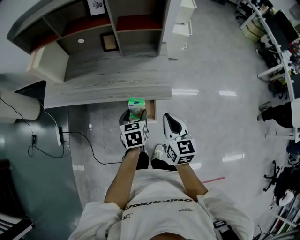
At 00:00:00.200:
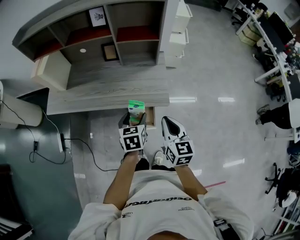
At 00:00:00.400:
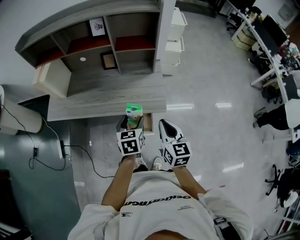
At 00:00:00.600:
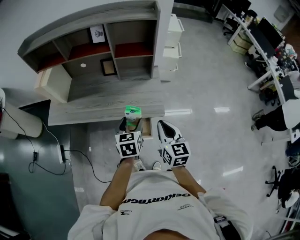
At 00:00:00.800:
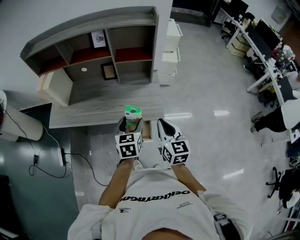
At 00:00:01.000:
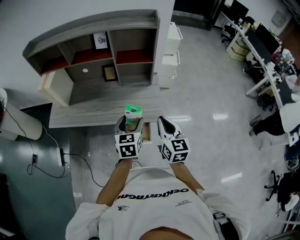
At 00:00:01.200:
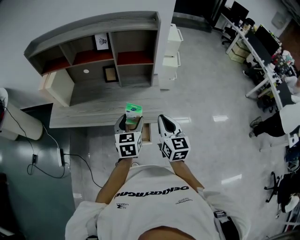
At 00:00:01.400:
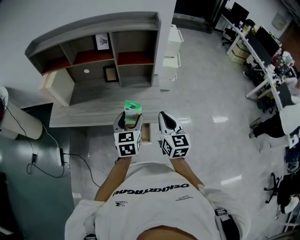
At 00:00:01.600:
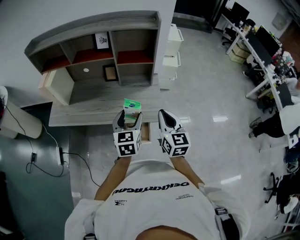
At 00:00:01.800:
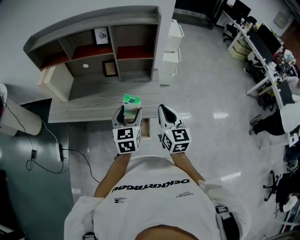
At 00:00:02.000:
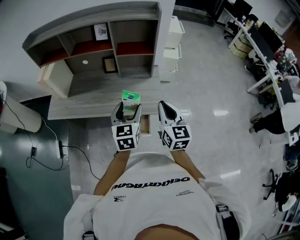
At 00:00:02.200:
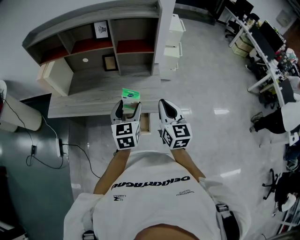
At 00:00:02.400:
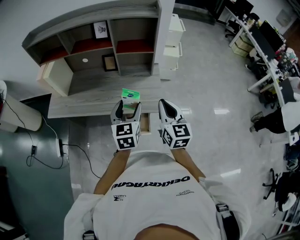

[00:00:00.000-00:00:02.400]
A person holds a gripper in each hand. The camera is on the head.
00:00:00.000 to 00:00:01.200: Both grippers move upward, roughly 15 cm. The left gripper changes its angle by some 20 degrees.
00:00:01.200 to 00:00:02.400: The grippers move only a little.

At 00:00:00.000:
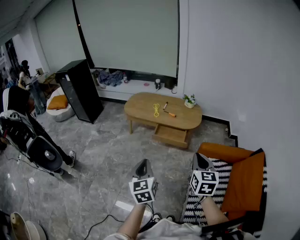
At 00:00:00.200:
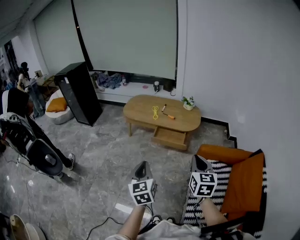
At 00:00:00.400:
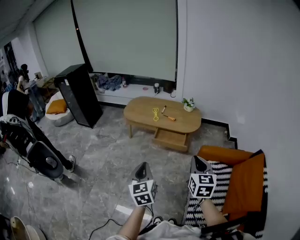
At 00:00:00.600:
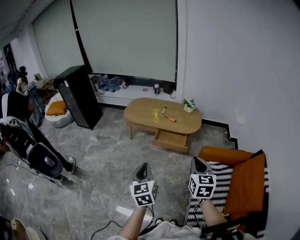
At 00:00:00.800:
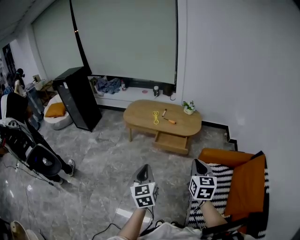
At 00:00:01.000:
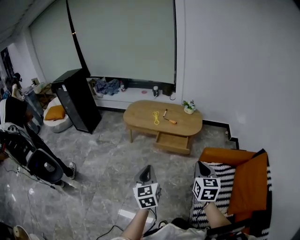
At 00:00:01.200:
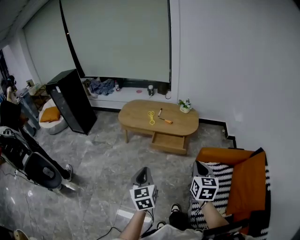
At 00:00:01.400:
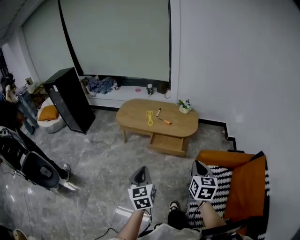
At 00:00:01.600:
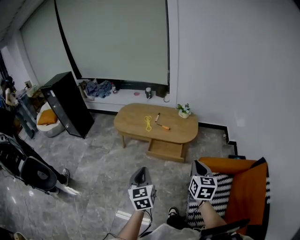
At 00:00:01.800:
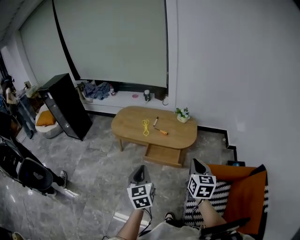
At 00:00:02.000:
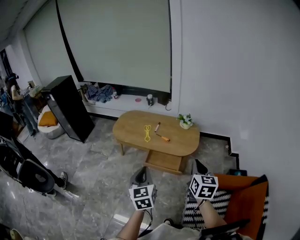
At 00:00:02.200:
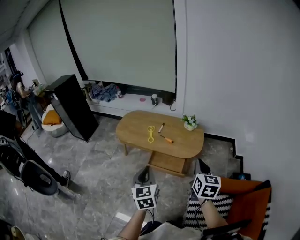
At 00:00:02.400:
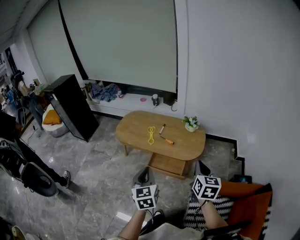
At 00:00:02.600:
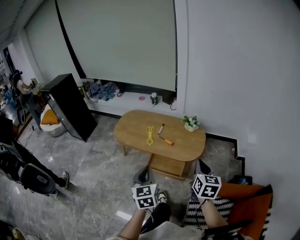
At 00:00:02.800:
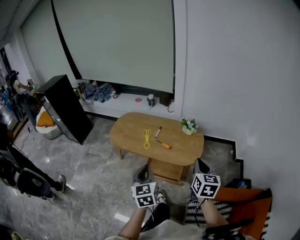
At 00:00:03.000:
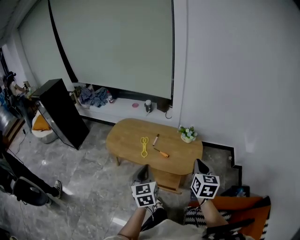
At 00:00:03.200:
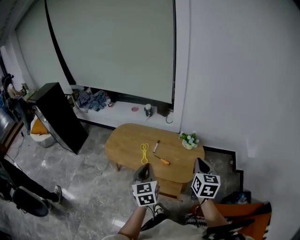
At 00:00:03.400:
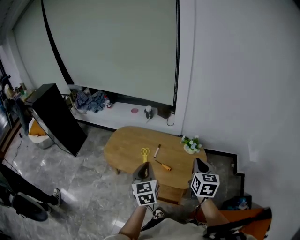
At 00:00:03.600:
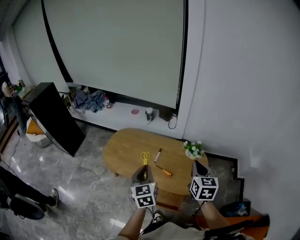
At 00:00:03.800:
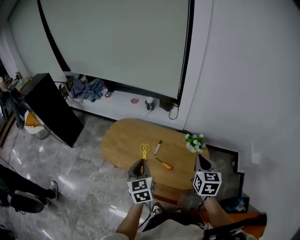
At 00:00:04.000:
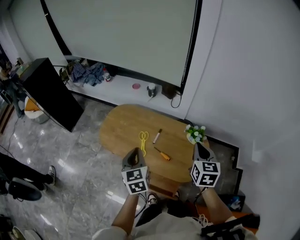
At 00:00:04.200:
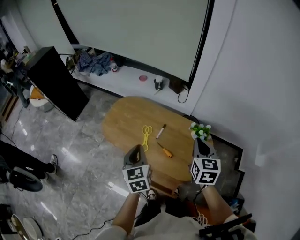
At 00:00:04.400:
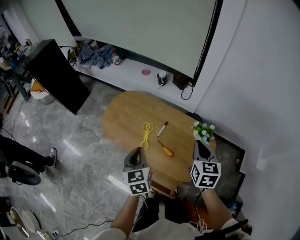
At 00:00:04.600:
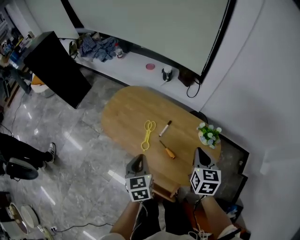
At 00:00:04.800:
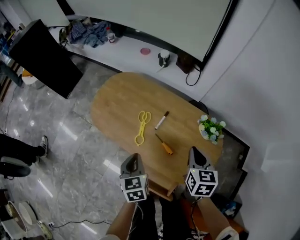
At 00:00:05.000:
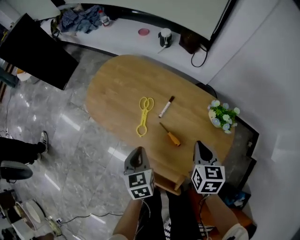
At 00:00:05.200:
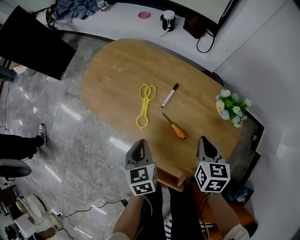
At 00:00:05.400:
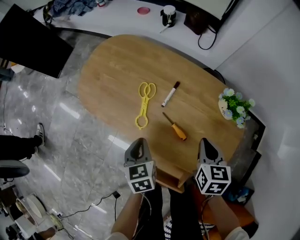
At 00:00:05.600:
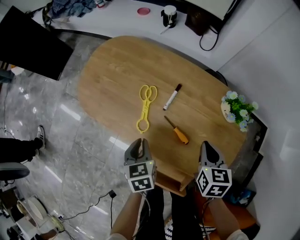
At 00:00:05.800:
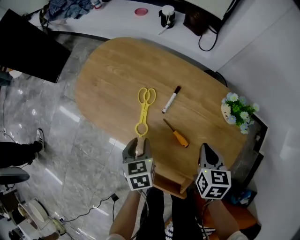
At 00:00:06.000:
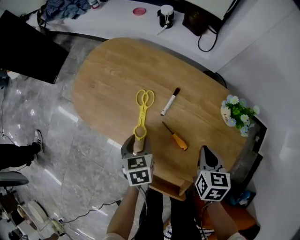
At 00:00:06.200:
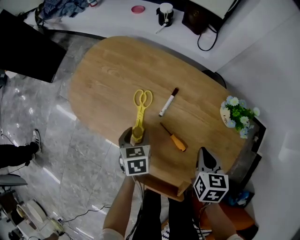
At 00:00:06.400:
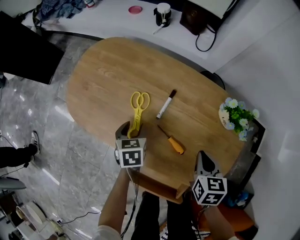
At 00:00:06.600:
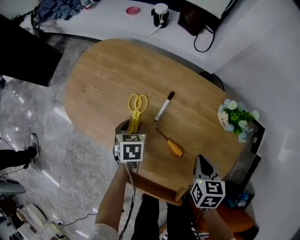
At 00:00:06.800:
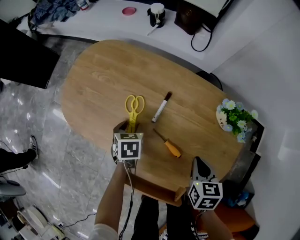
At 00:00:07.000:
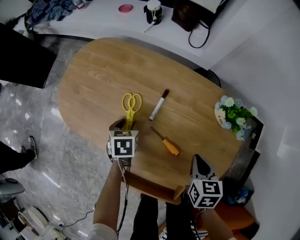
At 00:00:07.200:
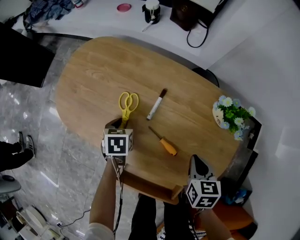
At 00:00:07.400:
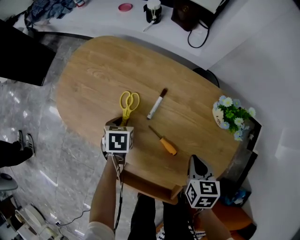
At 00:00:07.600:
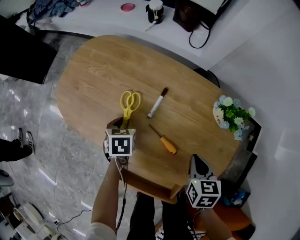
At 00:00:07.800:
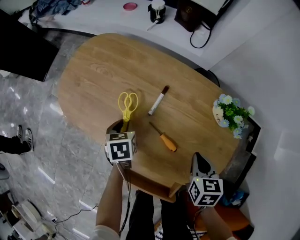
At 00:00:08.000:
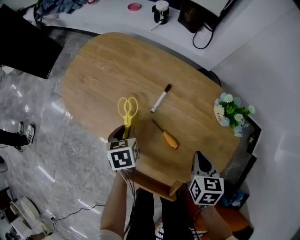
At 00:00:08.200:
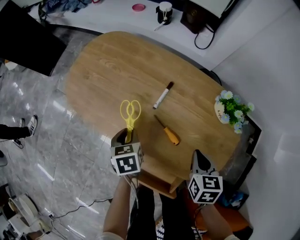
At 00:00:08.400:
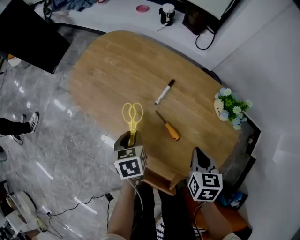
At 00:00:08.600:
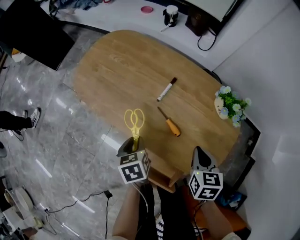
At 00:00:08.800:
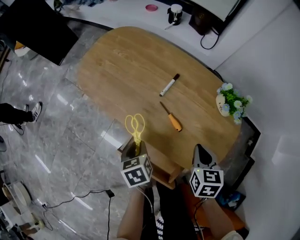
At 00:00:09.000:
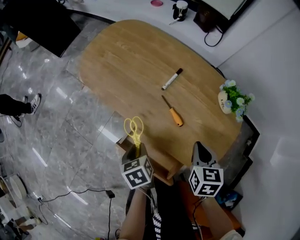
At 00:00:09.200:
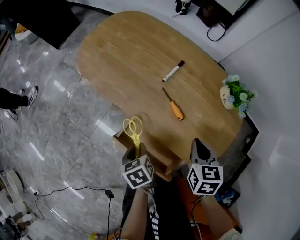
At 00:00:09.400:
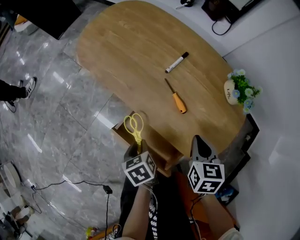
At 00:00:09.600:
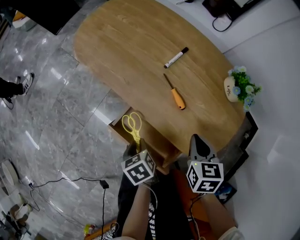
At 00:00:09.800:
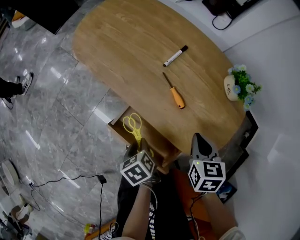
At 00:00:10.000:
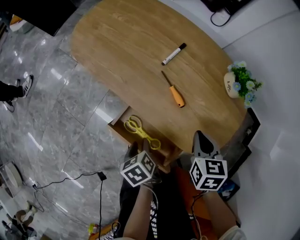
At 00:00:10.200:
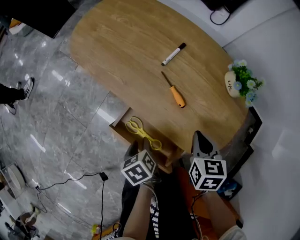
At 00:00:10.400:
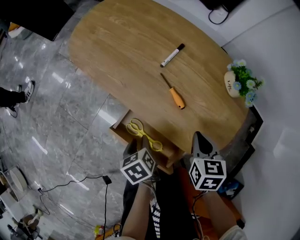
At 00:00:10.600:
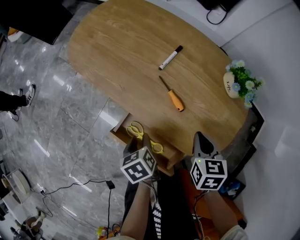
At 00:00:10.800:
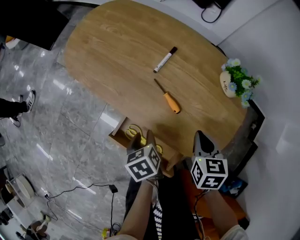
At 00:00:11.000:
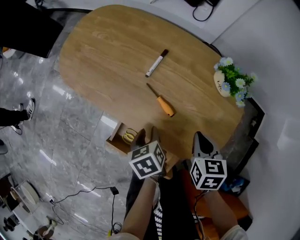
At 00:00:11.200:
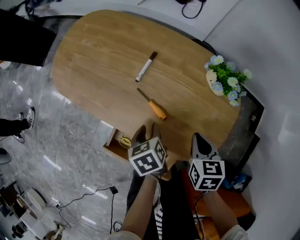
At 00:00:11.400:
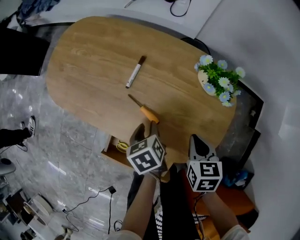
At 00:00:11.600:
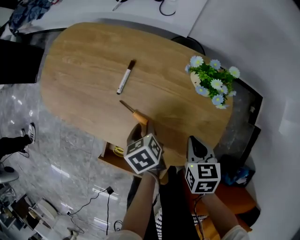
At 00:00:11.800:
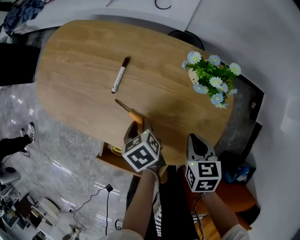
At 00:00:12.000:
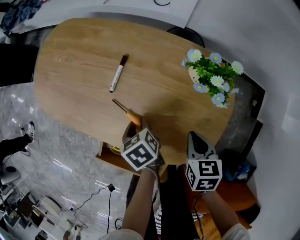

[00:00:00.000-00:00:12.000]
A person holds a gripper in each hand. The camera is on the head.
00:00:00.000 to 00:00:01.600: Both grippers travel together forward, some 15 cm.
00:00:01.600 to 00:00:03.000: Both grippers move forward, about 35 cm.
00:00:03.000 to 00:00:04.400: The grippers both shift forward by approximately 30 cm.
00:00:04.400 to 00:00:06.000: The grippers both shift downward by approximately 35 cm. The right gripper rotates roughly 20 degrees; the left gripper turns by some 20 degrees, and opens its fingers.
00:00:06.000 to 00:00:07.600: The left gripper heads forward and downward, covering some 10 cm.
00:00:07.600 to 00:00:09.000: The left gripper moves backward, about 25 cm, and swivels about 40 degrees. Meanwhile the right gripper is displaced backward and upward by roughly 10 cm.
00:00:09.000 to 00:00:10.400: The left gripper moves downward, roughly 5 cm, while the right gripper changes place by some 5 cm.
00:00:10.400 to 00:00:12.000: The left gripper heads forward and to the right, covering roughly 20 cm; the right gripper is displaced to the right by approximately 10 cm.

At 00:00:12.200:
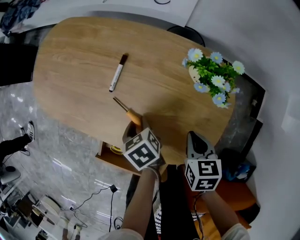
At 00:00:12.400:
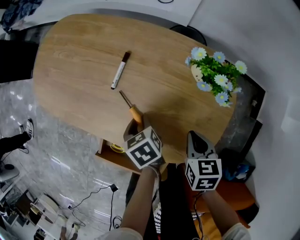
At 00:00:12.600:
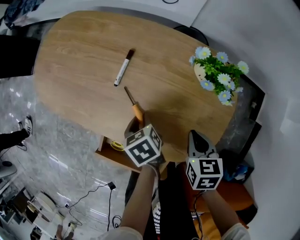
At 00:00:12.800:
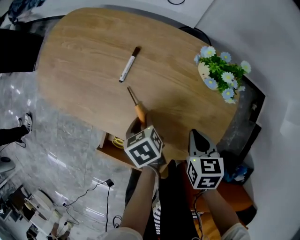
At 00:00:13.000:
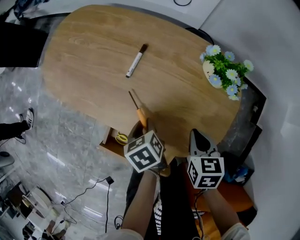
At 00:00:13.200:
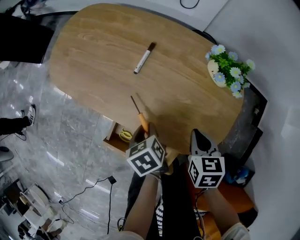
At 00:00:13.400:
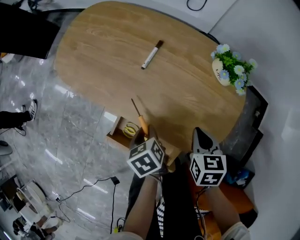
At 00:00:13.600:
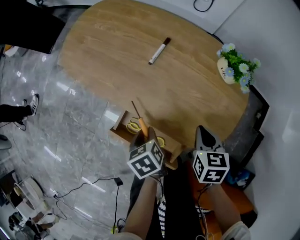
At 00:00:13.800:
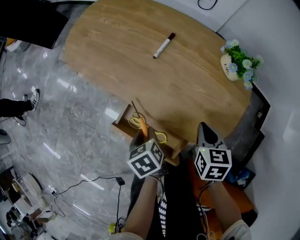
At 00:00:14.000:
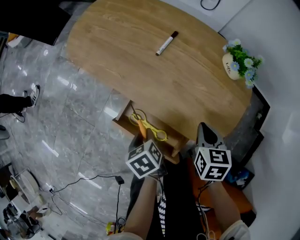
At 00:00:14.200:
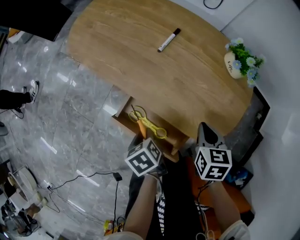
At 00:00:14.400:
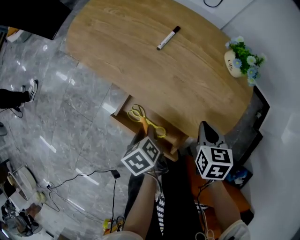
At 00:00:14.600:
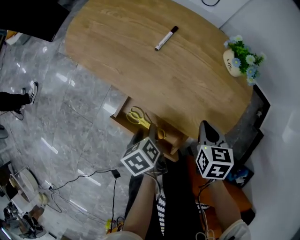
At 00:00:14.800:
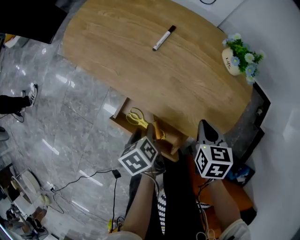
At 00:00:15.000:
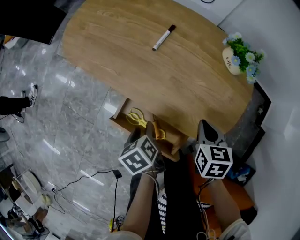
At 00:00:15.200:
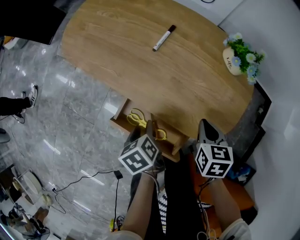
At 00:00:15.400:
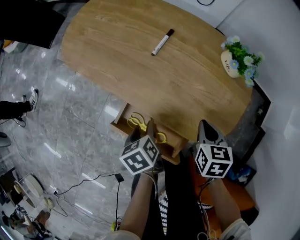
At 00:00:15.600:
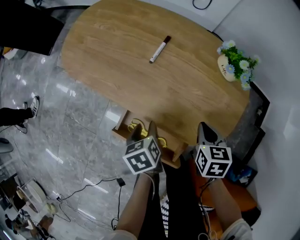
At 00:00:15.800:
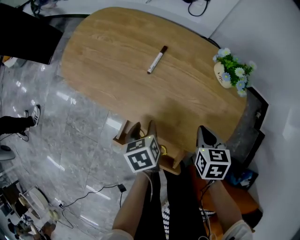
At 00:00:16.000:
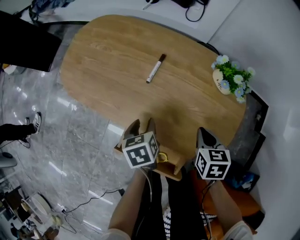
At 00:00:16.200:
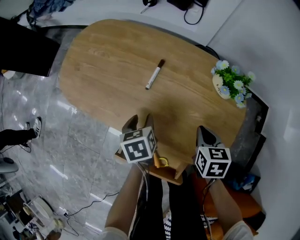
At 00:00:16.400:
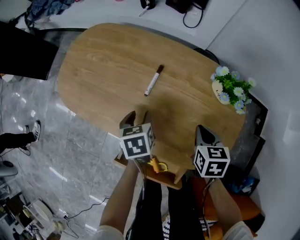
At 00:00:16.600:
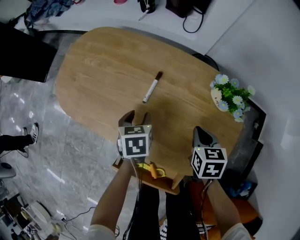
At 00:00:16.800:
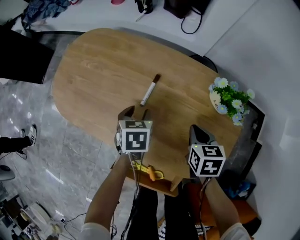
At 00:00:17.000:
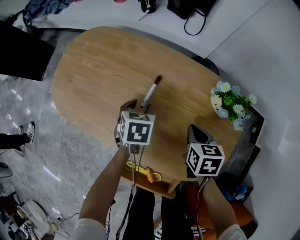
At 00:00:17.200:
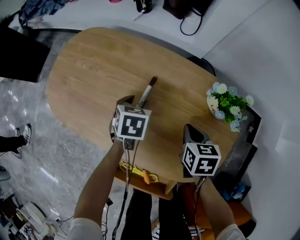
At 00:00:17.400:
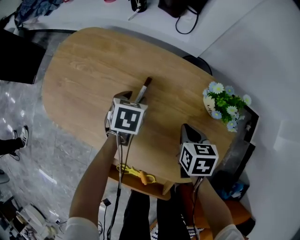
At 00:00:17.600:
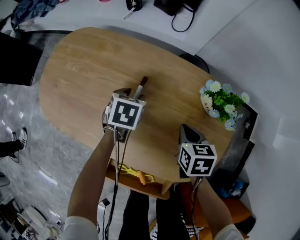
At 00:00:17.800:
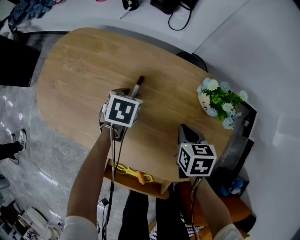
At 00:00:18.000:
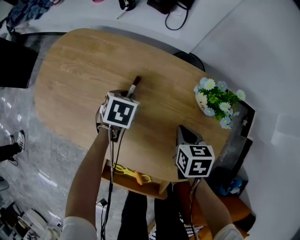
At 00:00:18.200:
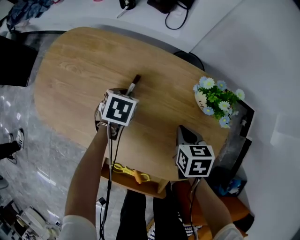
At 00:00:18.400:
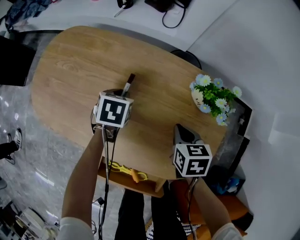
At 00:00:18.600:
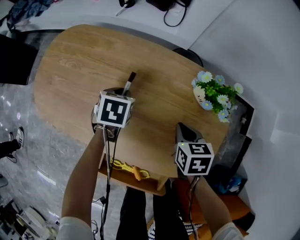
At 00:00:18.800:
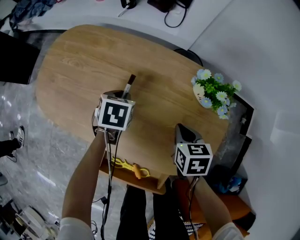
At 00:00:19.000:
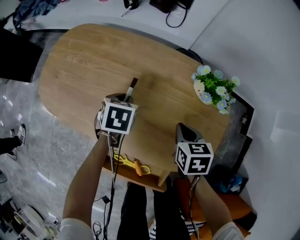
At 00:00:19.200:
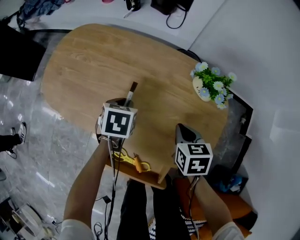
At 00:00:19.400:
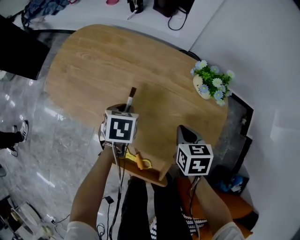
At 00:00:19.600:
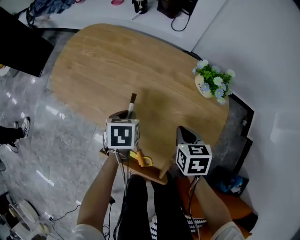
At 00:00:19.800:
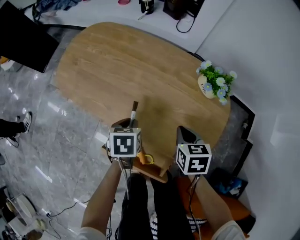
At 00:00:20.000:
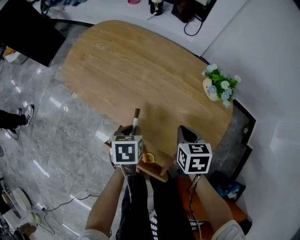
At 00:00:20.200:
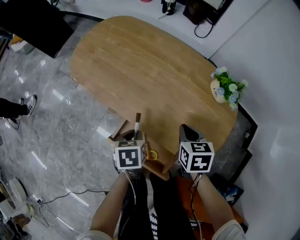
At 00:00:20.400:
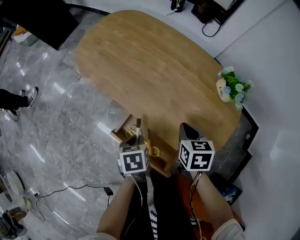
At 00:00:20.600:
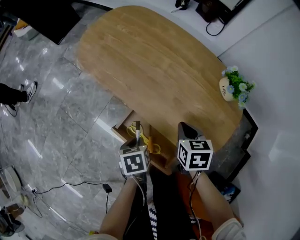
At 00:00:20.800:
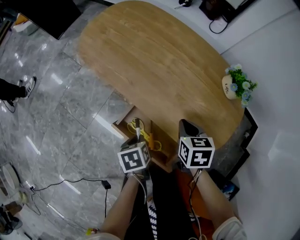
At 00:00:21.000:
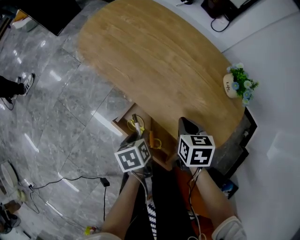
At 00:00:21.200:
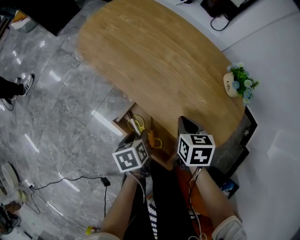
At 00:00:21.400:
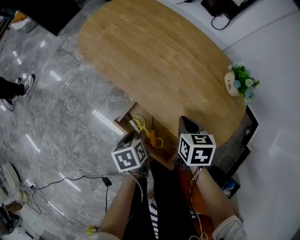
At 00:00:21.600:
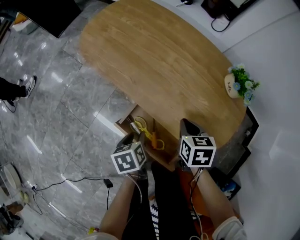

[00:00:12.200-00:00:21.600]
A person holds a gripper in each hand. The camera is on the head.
00:00:12.200 to 00:00:13.800: The right gripper shifts some 10 cm to the left. Meanwhile the left gripper moves backward and to the left, approximately 20 cm.
00:00:13.800 to 00:00:15.400: The grippers stay close to where they were, moving slightly.
00:00:15.400 to 00:00:17.000: The left gripper travels forward by some 30 cm, and twists approximately 50 degrees clockwise, seen from behind, while the right gripper heads forward, covering approximately 15 cm.
00:00:17.000 to 00:00:18.400: The left gripper closes its fingers.
00:00:18.400 to 00:00:20.000: The left gripper shifts roughly 25 cm backward, and swivels approximately 30 degrees. Meanwhile the right gripper shifts approximately 10 cm backward and upward.
00:00:20.000 to 00:00:21.600: The left gripper travels backward and to the left by about 15 cm, turns by some 30 degrees, and opens its fingers, while the right gripper heads to the left, covering roughly 10 cm.
